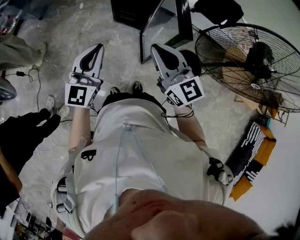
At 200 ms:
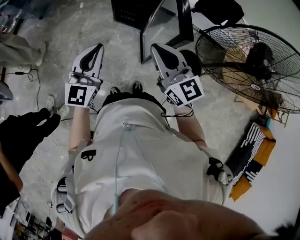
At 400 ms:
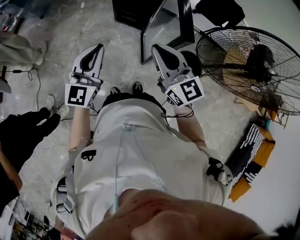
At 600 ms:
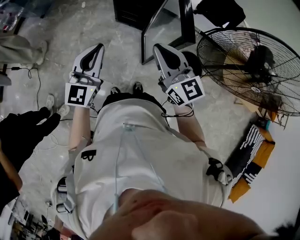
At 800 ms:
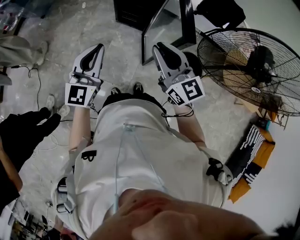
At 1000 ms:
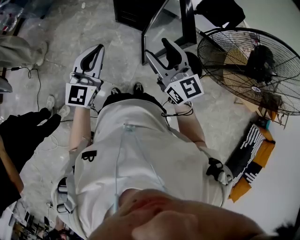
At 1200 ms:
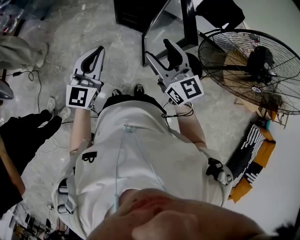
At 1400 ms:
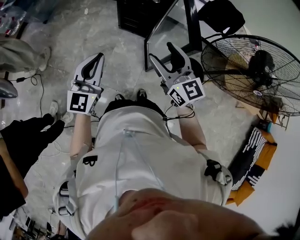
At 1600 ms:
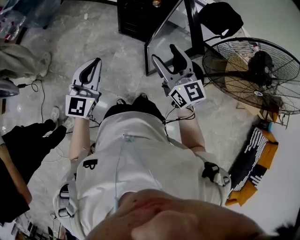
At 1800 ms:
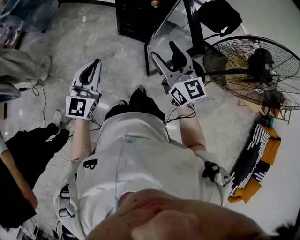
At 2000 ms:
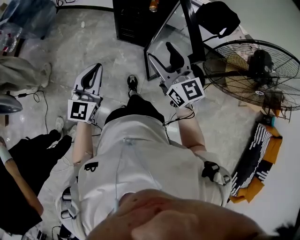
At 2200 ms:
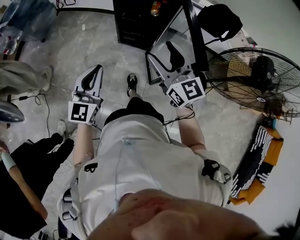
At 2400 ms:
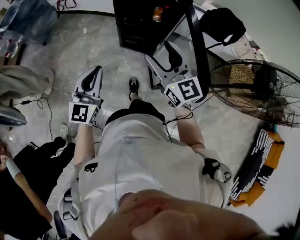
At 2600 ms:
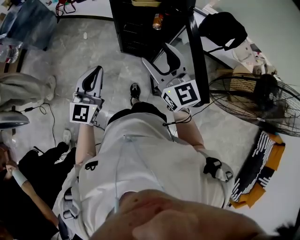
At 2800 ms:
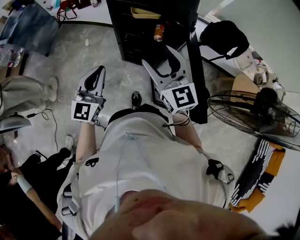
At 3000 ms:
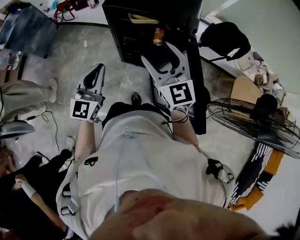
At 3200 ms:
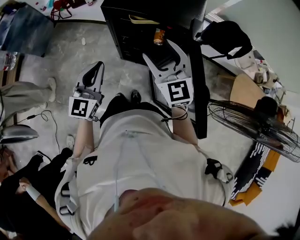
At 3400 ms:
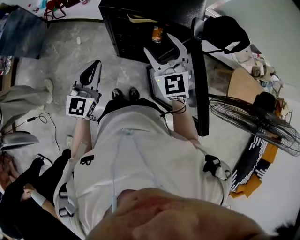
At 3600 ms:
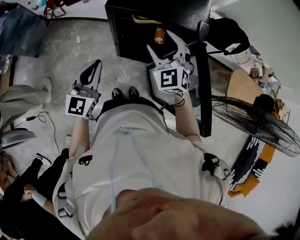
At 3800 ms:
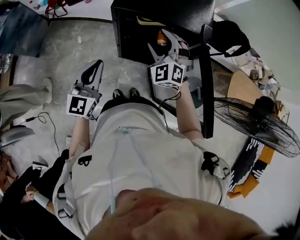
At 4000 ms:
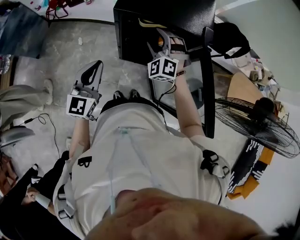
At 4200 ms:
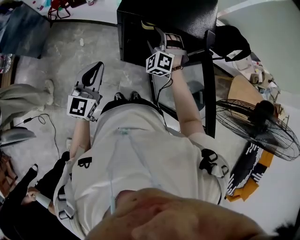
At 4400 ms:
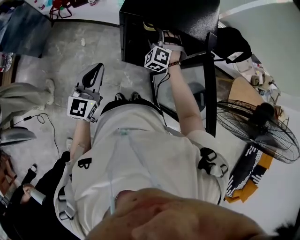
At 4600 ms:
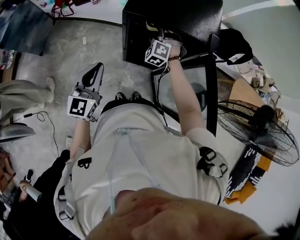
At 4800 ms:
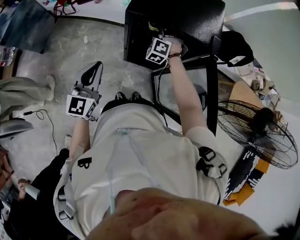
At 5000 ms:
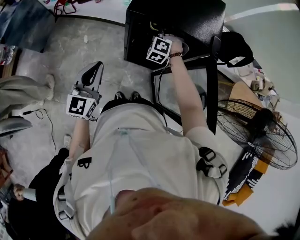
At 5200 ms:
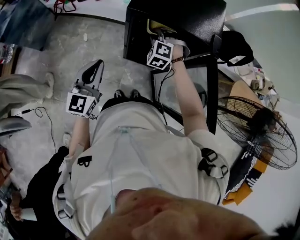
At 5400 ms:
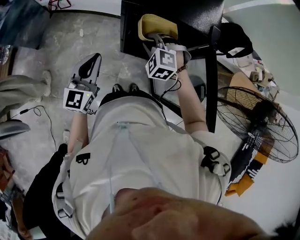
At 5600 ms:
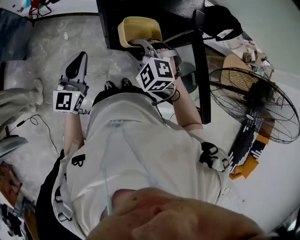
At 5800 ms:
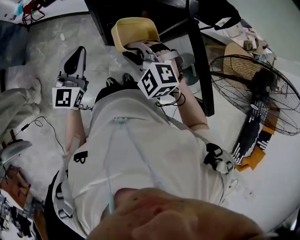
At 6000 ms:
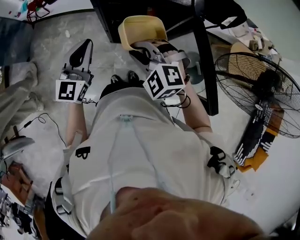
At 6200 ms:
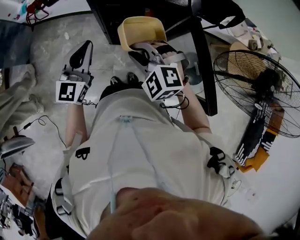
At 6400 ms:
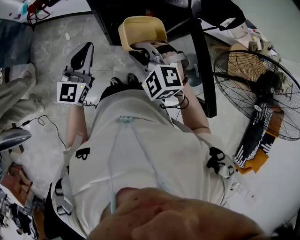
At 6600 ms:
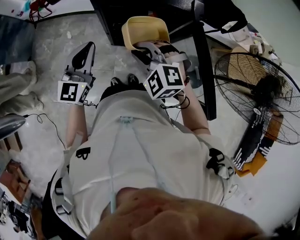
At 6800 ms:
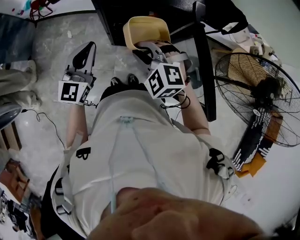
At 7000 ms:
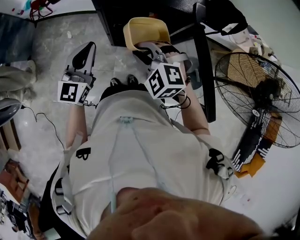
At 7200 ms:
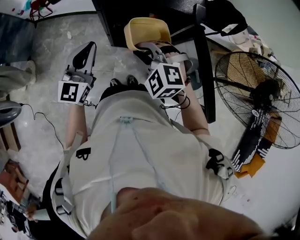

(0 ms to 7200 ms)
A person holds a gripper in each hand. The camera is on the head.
0 ms - 1400 ms: The right gripper opens its fingers.
1400 ms - 2800 ms: The two grippers go about 30 cm forward.
2800 ms - 4400 ms: The left gripper goes some 15 cm forward and to the left; the right gripper shifts some 30 cm forward and downward, and twists roughly 60 degrees counterclockwise, seen from behind.
4400 ms - 5800 ms: The right gripper travels backward and upward by some 20 cm, turns by approximately 30 degrees, and closes its fingers.
5800 ms - 7200 ms: The grippers move only a little.

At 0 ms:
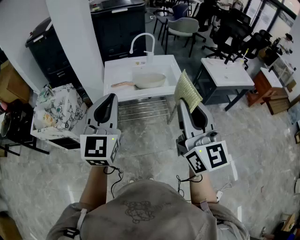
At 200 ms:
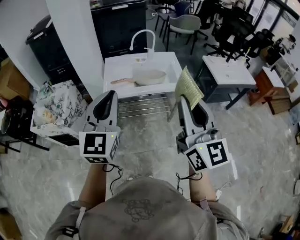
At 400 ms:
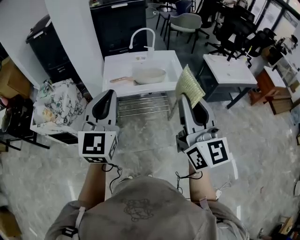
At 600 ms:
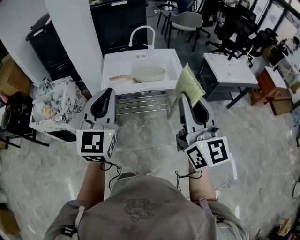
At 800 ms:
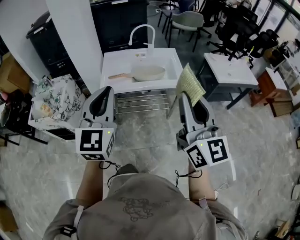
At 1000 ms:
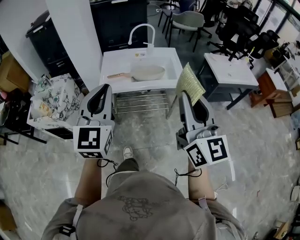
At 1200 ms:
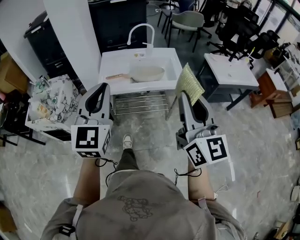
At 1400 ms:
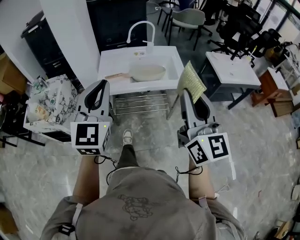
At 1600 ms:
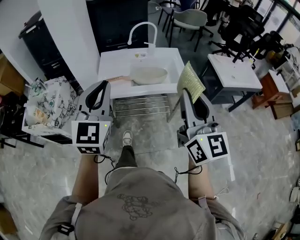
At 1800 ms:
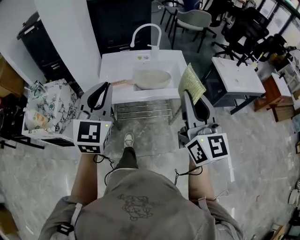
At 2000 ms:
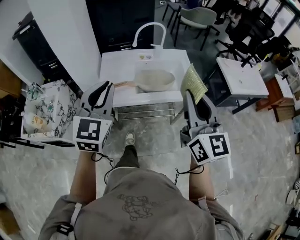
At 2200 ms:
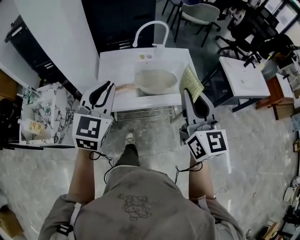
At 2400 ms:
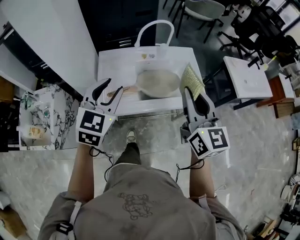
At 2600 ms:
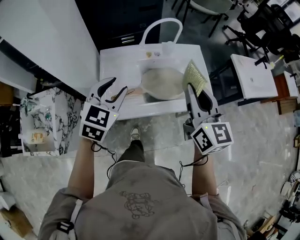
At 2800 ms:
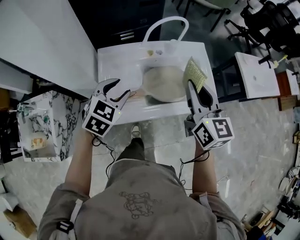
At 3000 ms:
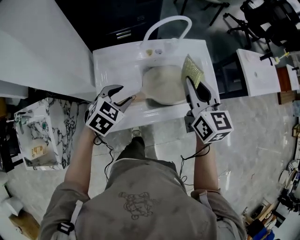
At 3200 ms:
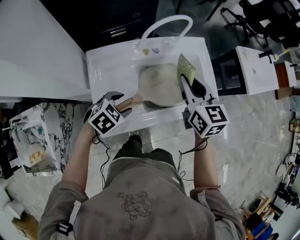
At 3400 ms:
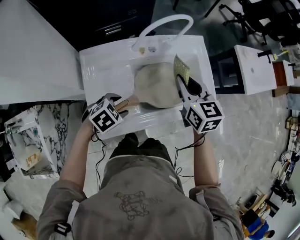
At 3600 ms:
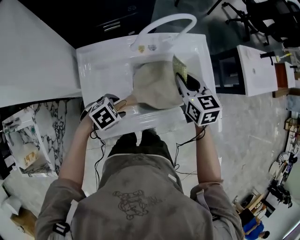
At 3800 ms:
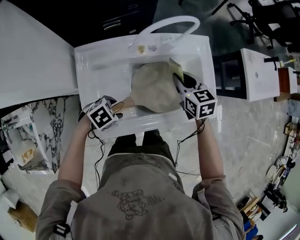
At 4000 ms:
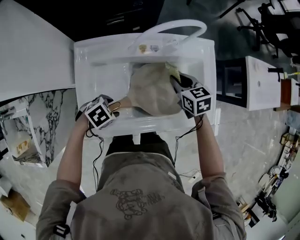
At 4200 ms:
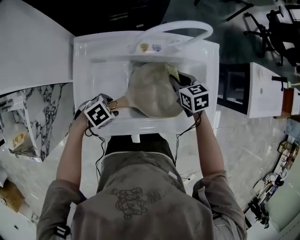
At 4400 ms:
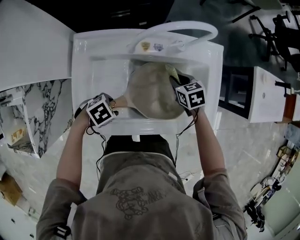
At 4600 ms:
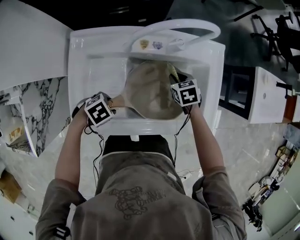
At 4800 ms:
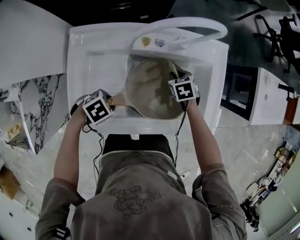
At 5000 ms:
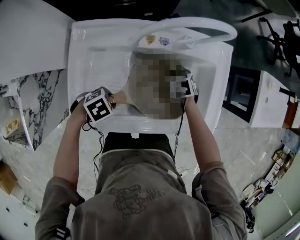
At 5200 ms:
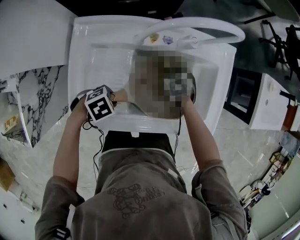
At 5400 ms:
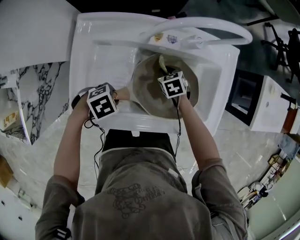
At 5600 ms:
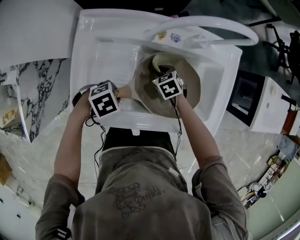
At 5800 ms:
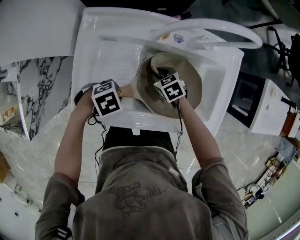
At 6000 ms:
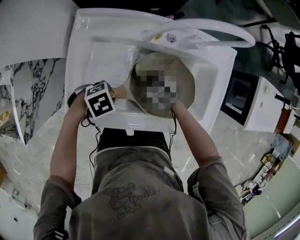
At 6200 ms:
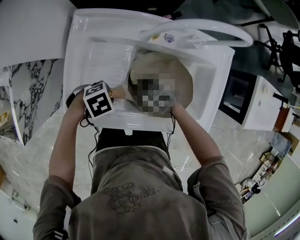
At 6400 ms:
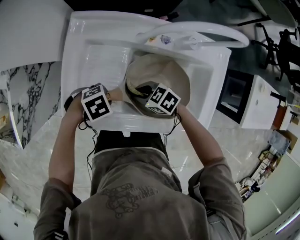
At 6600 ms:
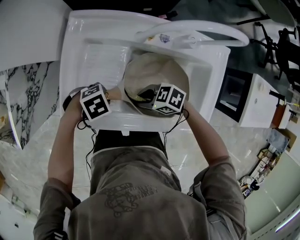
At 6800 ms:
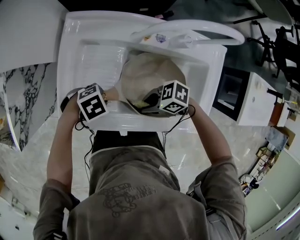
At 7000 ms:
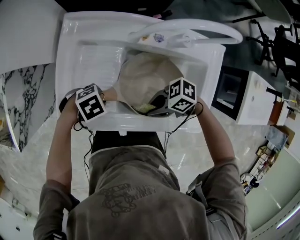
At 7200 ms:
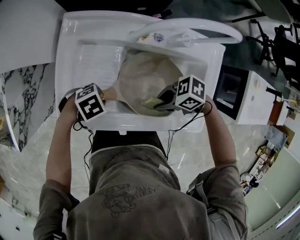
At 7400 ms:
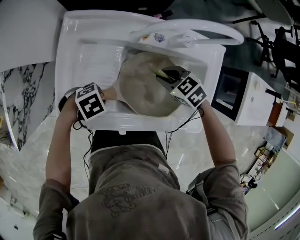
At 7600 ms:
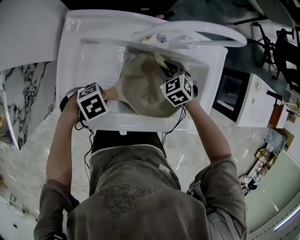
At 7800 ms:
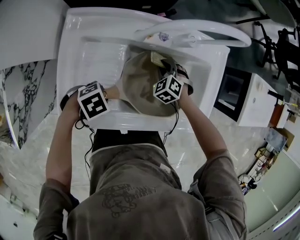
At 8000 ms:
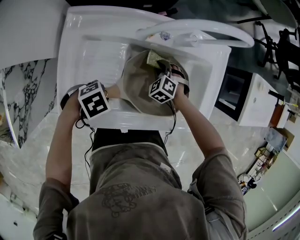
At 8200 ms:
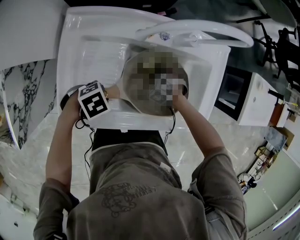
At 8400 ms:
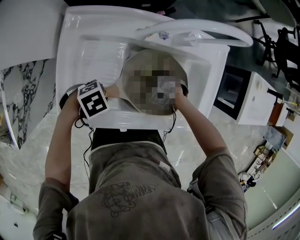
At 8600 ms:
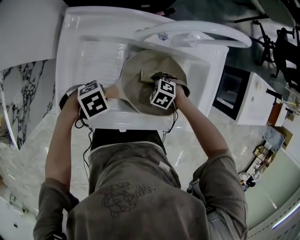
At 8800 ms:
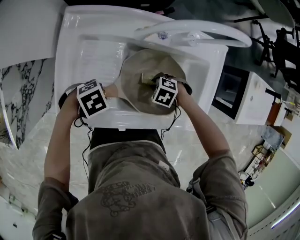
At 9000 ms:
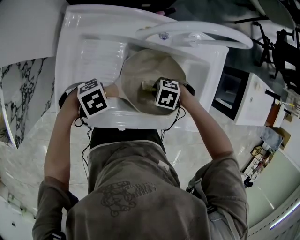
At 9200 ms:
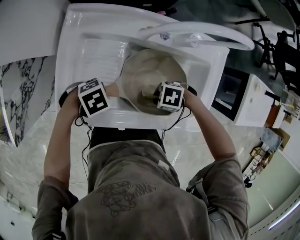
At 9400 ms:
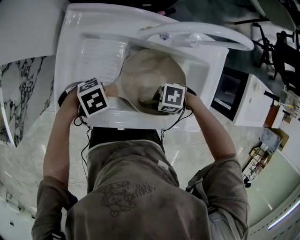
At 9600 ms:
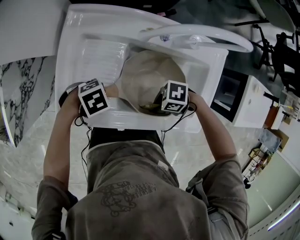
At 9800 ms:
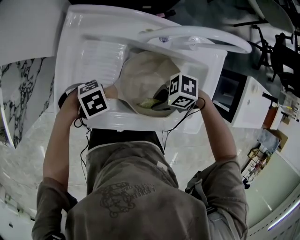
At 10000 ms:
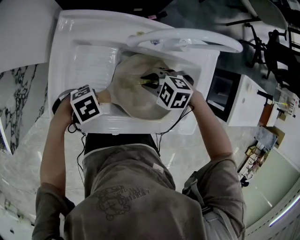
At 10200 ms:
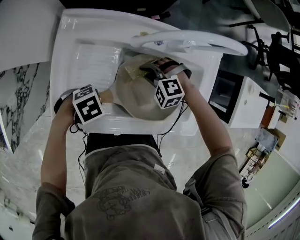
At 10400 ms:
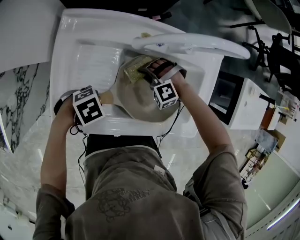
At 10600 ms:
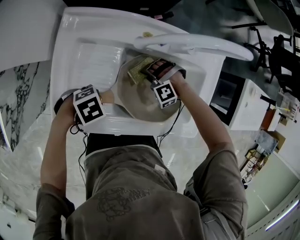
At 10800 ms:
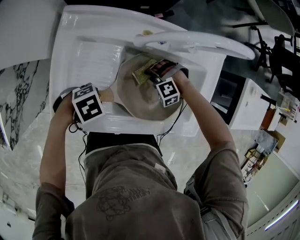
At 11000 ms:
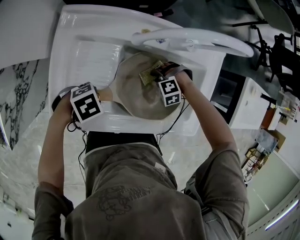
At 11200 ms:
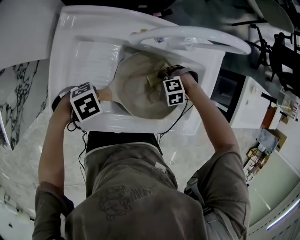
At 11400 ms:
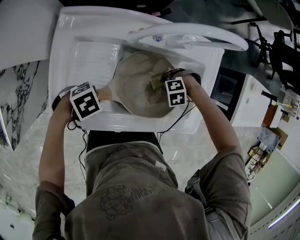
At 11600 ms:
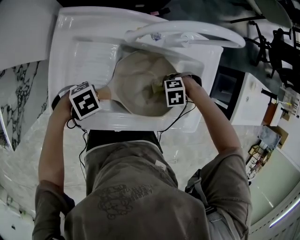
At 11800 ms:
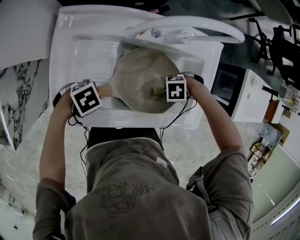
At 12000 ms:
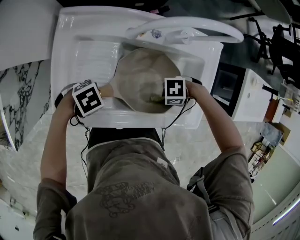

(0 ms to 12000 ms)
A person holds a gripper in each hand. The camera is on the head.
0 ms - 1600 ms: The left gripper heads forward and downward, covering roughly 10 cm. The right gripper is displaced forward, downward and to the right by some 15 cm.
1600 ms - 3000 ms: The right gripper shifts some 40 cm forward, and rotates some 30 degrees. The left gripper moves forward and downward, approximately 50 cm, tilts its fingers roughly 50 degrees downward, and opens its fingers.
3000 ms - 4400 ms: The right gripper travels downward by some 30 cm, and tilts its fingers roughly 40 degrees downward. Meanwhile the left gripper travels downward by about 20 cm, and changes its angle by roughly 40 degrees.
4400 ms - 6000 ms: The right gripper ends up some 20 cm from where it was, and turns by about 30 degrees. The left gripper closes its fingers.
6000 ms - 7600 ms: The right gripper shifts by approximately 15 cm, and swivels about 30 degrees.
7600 ms - 9000 ms: The right gripper changes place by roughly 15 cm, and changes its angle by approximately 50 degrees.
9000 ms - 10400 ms: The right gripper reaches roughly 10 cm upward, then returns, and turns by approximately 60 degrees.
10400 ms - 12000 ms: The right gripper shifts by about 20 cm, and changes its angle by about 70 degrees.

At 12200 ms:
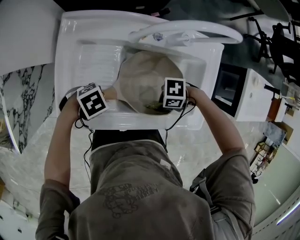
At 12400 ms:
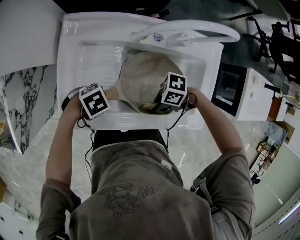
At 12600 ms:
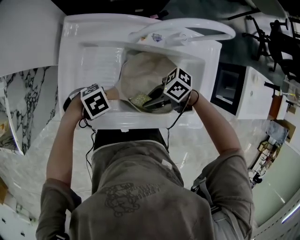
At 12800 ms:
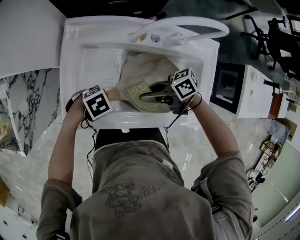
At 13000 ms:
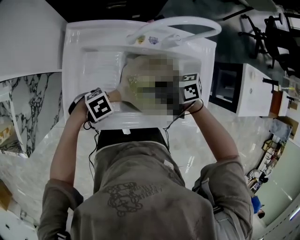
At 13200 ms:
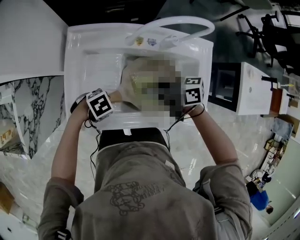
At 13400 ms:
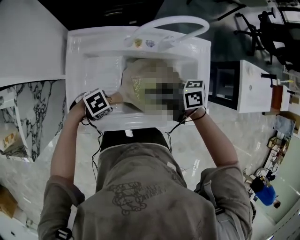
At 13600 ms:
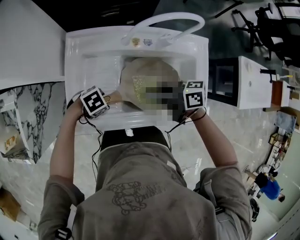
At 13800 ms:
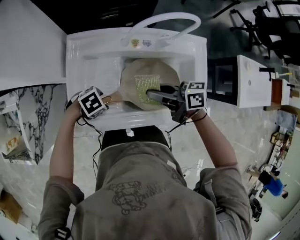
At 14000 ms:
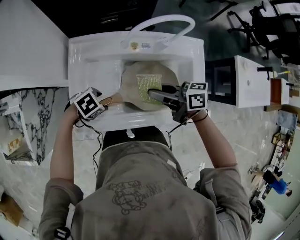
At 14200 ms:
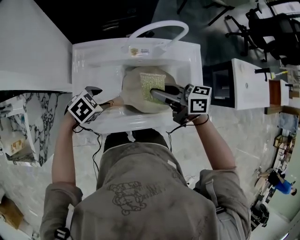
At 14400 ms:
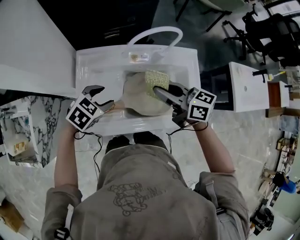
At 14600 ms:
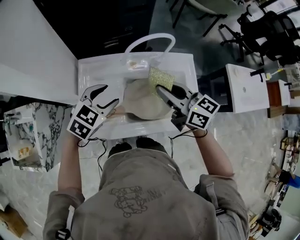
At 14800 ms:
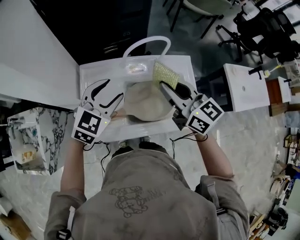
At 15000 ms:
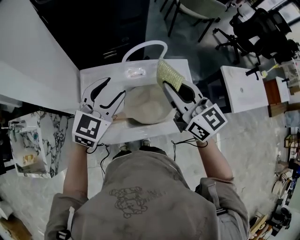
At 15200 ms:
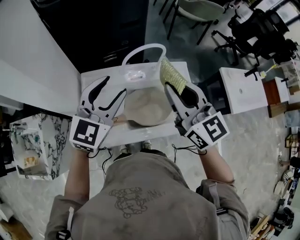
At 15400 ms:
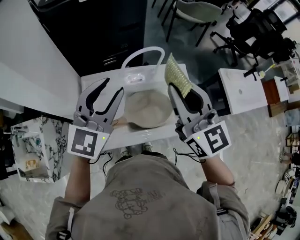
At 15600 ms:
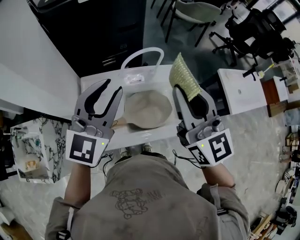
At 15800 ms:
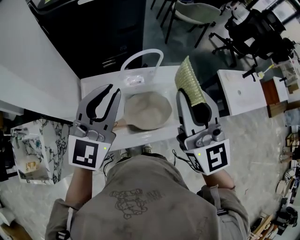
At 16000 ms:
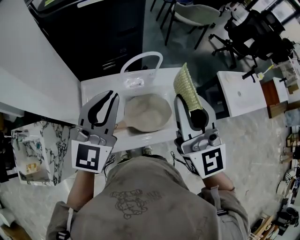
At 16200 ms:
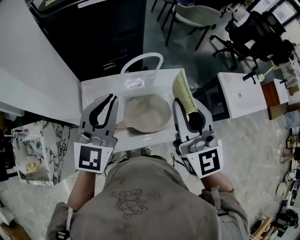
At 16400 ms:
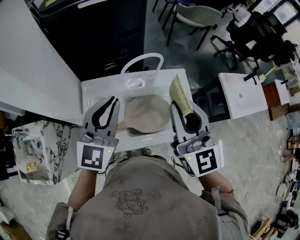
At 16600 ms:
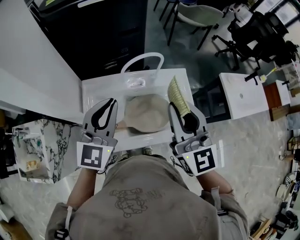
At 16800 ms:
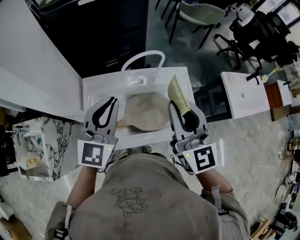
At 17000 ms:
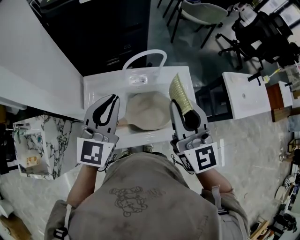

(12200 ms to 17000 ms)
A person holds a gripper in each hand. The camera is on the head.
12200 ms - 13800 ms: The right gripper goes some 15 cm upward, and changes its angle by about 90 degrees. The left gripper opens.
13800 ms - 15400 ms: Both grippers move upward, about 40 cm. The right gripper swivels about 80 degrees. Meanwhile the left gripper points its fingers approximately 60 degrees further upward.
15400 ms - 17000 ms: The left gripper closes up.
